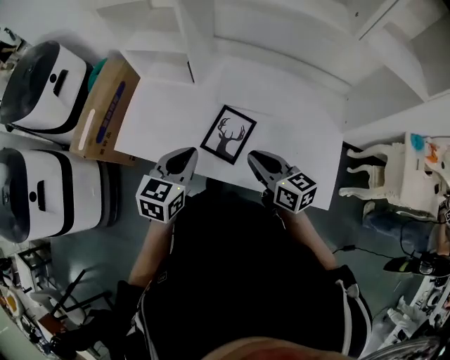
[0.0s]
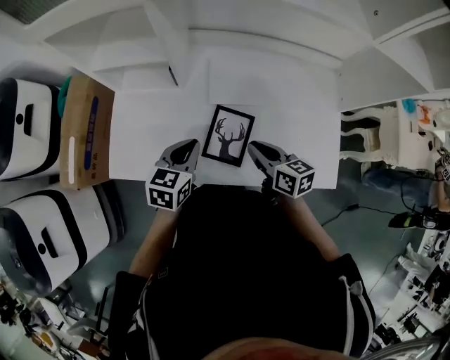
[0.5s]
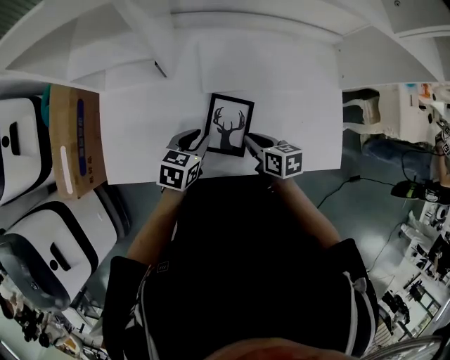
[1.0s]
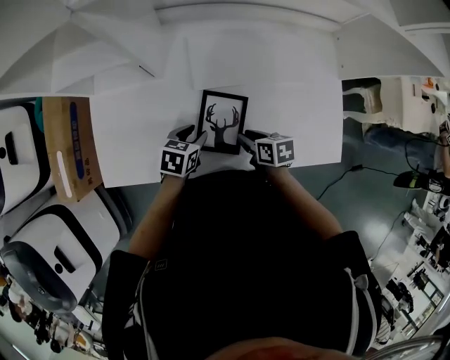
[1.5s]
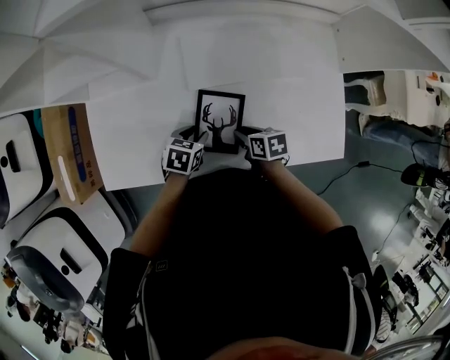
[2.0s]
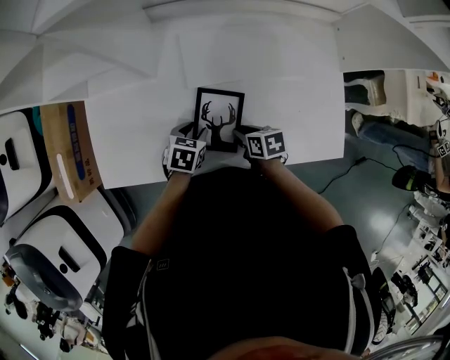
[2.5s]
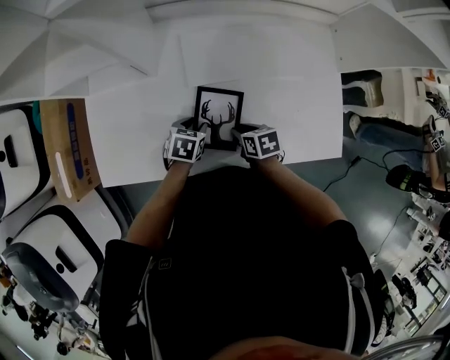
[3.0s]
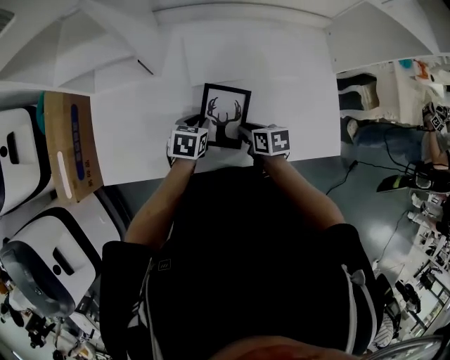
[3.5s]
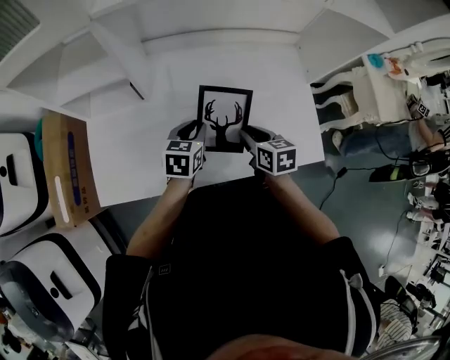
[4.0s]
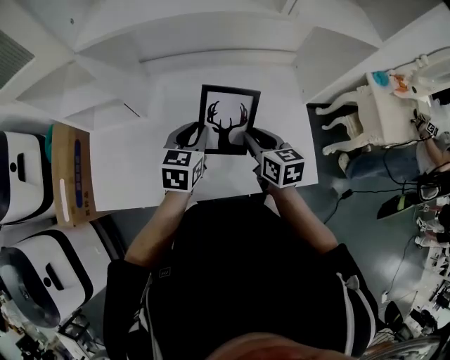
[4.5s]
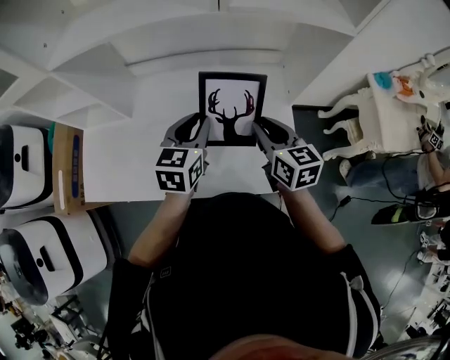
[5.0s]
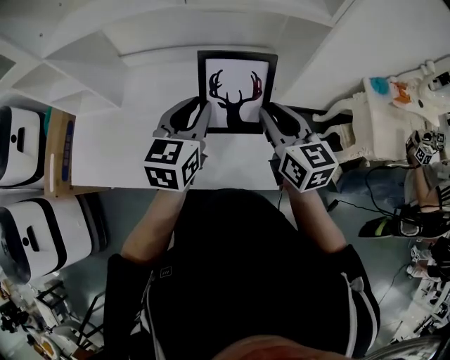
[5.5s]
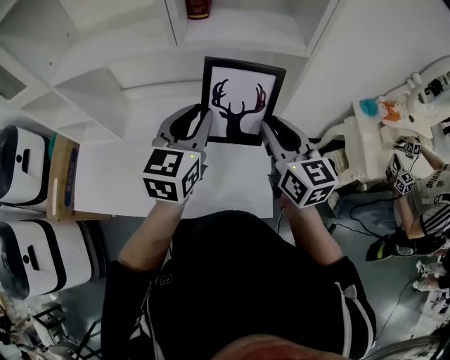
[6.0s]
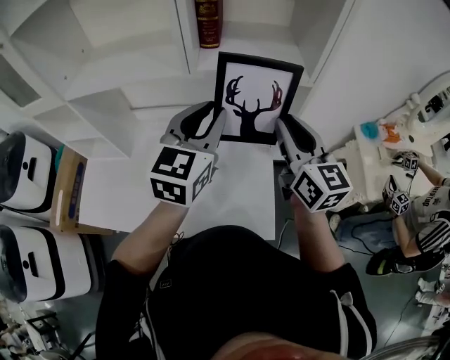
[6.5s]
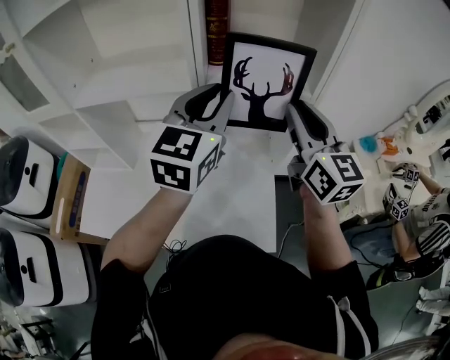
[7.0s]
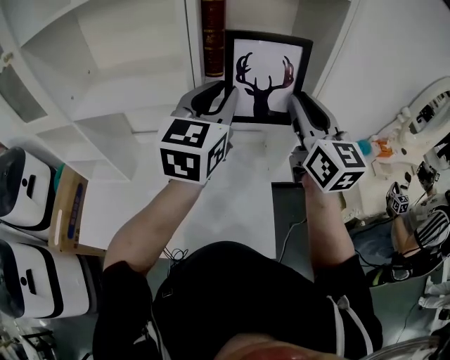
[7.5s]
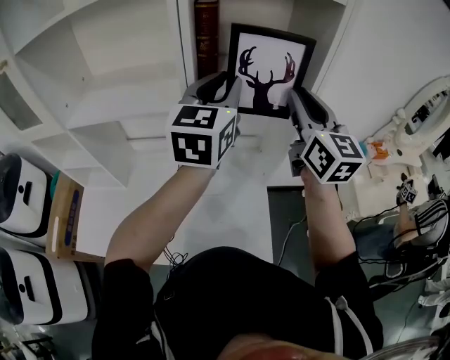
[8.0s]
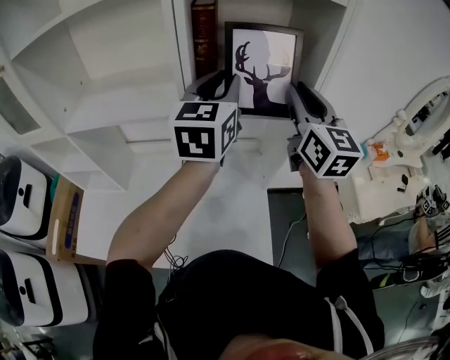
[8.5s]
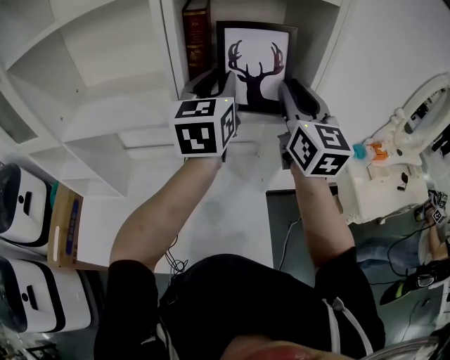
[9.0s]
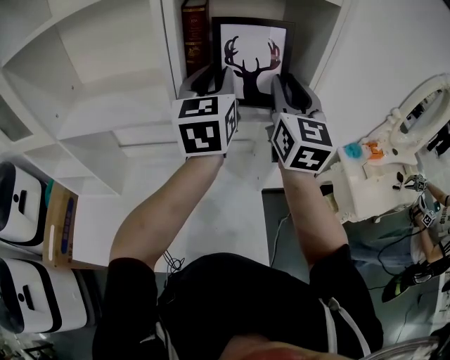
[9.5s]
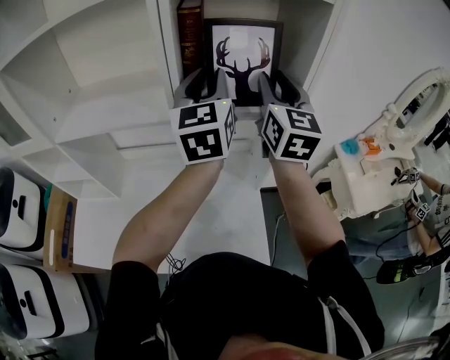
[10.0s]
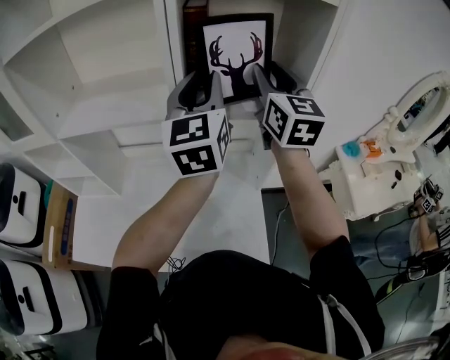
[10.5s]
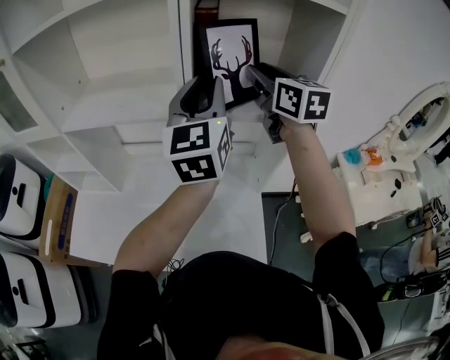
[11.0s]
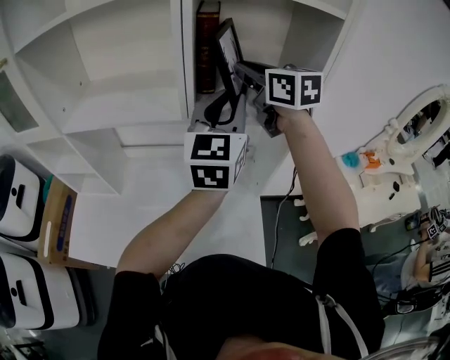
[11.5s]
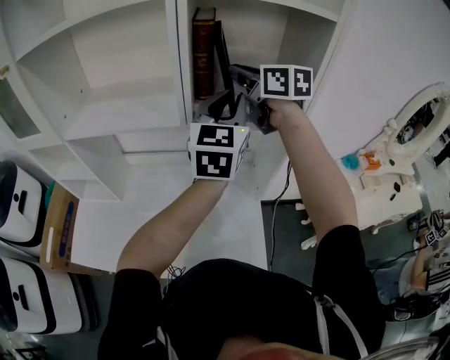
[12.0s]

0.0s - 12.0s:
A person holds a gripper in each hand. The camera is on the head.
0.0s - 2.0s: The left gripper heads downward and forward, covering approximately 30 cm, rotates about 40 degrees, and opens up, while the right gripper goes approximately 25 cm downward, and tilts its fingers about 40 degrees downward.
2.0s - 4.0s: Both grippers travel together upward, approximately 15 cm. The left gripper changes its angle by roughly 20 degrees. Meanwhile the right gripper turns by roughly 30 degrees.
4.0s - 6.0s: The two grippers go roughly 40 cm to the right and upward. The left gripper changes its angle by approximately 30 degrees. Meanwhile the right gripper tips its fingers upward by roughly 40 degrees.
6.0s - 8.0s: The grippers both shift upward and forward by approximately 20 cm. The right gripper rotates approximately 20 degrees.
8.0s - 10.0s: The right gripper moves forward, approximately 5 cm.
10.0s - 12.0s: The right gripper is displaced to the left and forward by some 10 cm, and rotates some 40 degrees.

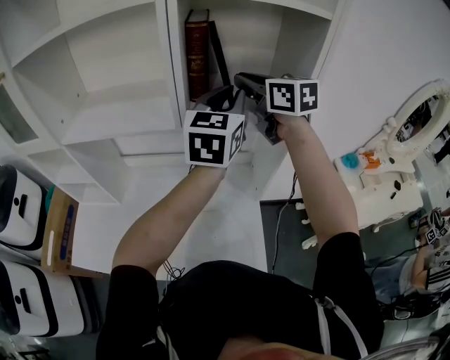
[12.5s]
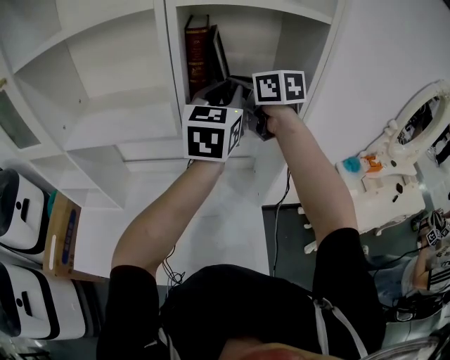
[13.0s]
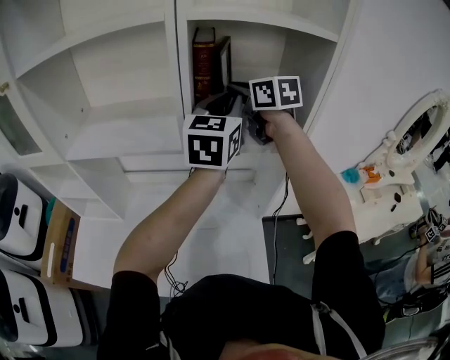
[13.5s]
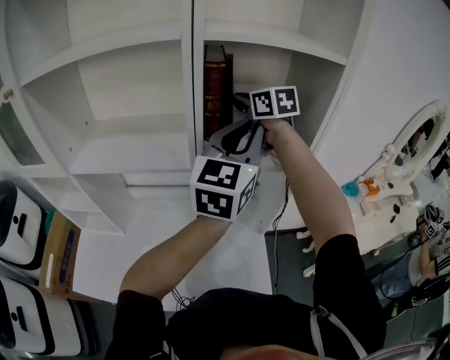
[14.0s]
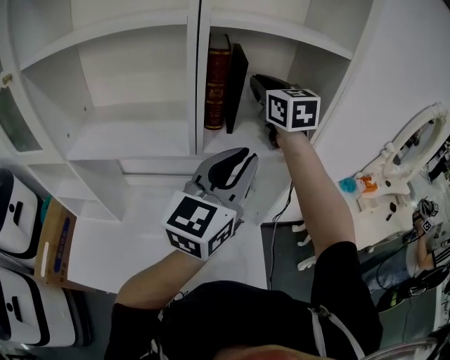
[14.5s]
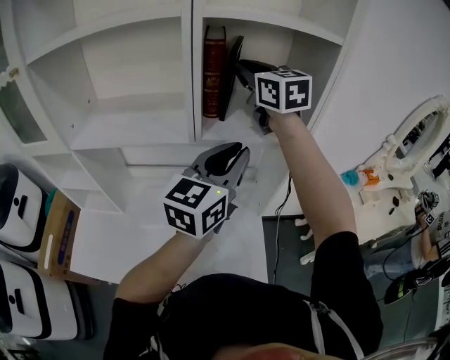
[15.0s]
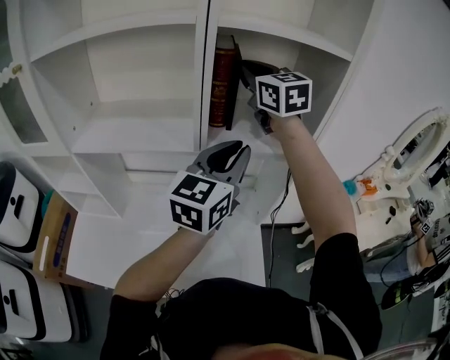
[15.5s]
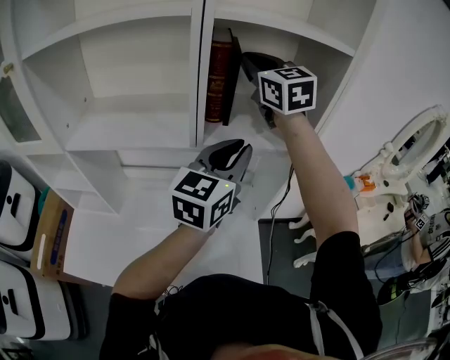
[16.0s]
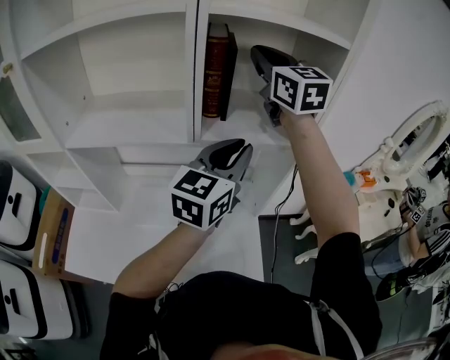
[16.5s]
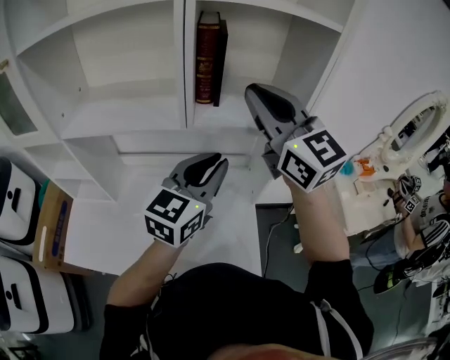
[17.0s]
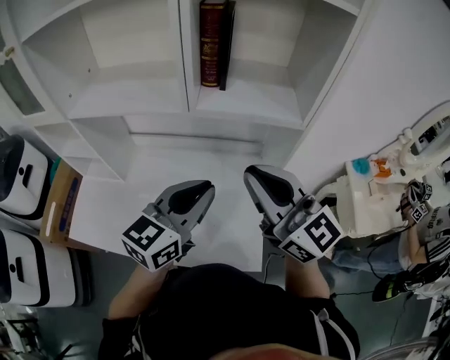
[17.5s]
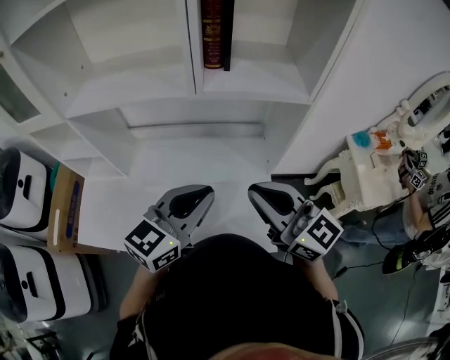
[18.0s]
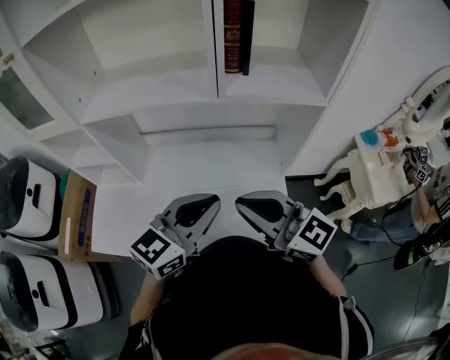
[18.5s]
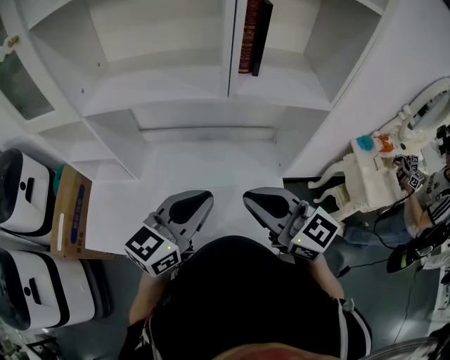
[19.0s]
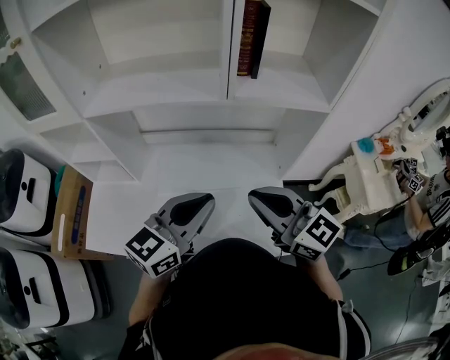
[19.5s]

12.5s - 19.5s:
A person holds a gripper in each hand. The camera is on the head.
12.5s - 14.5s: The left gripper heads backward, covering some 10 cm. Meanwhile the right gripper goes roughly 5 cm upward and forward, and rotates some 20 degrees.
14.5s - 16.0s: The left gripper moves about 5 cm; the right gripper changes place by roughly 5 cm.
16.0s - 17.5s: The left gripper moves backward and downward, some 15 cm. Meanwhile the right gripper moves backward and downward, some 35 cm, and rotates roughly 30 degrees.
17.5s - 19.5s: The right gripper heads to the left and downward, covering some 15 cm. The left gripper is displaced to the left by approximately 10 cm.

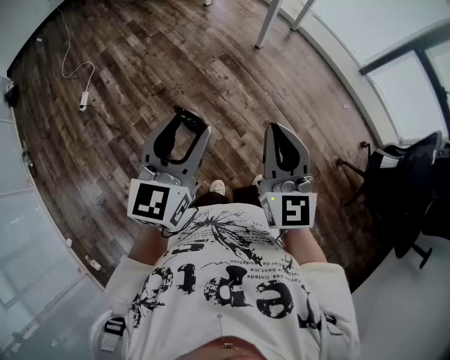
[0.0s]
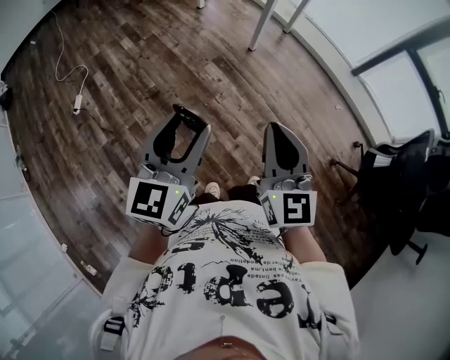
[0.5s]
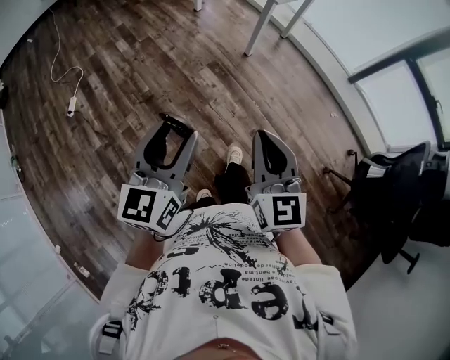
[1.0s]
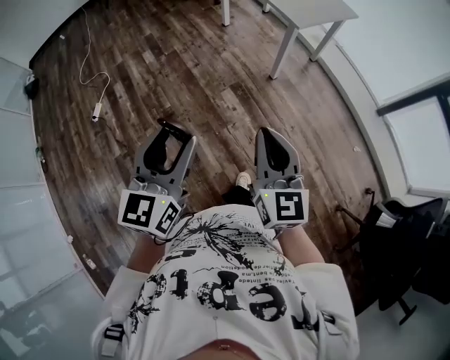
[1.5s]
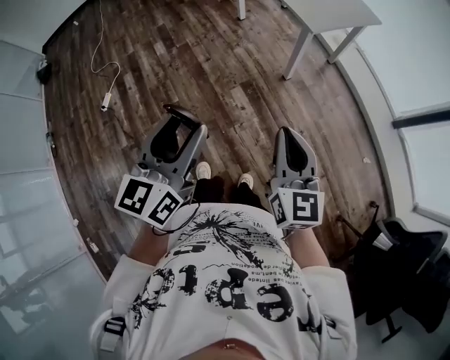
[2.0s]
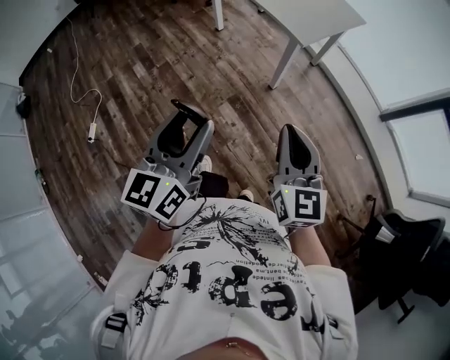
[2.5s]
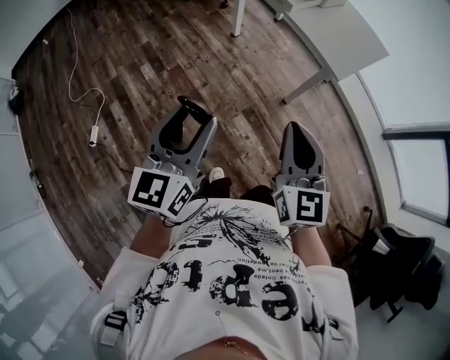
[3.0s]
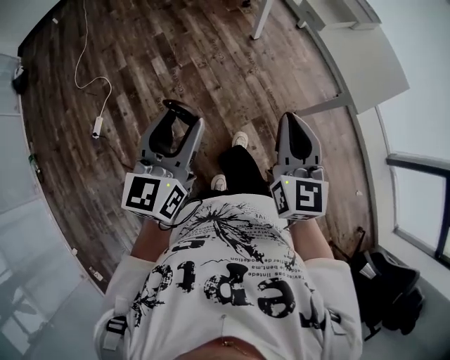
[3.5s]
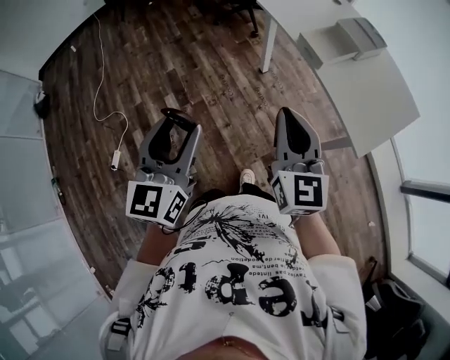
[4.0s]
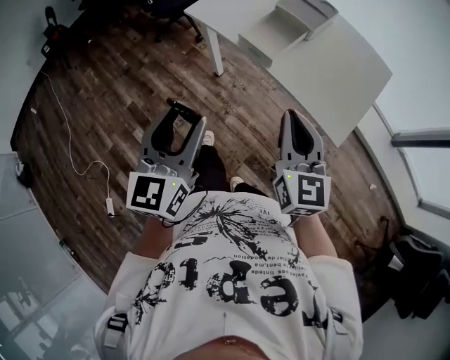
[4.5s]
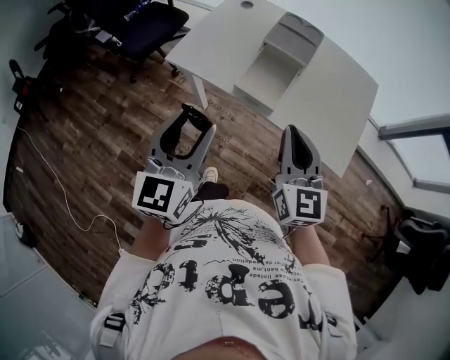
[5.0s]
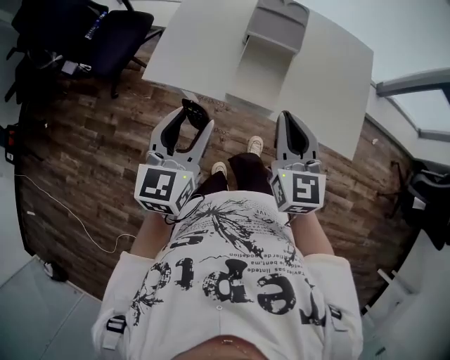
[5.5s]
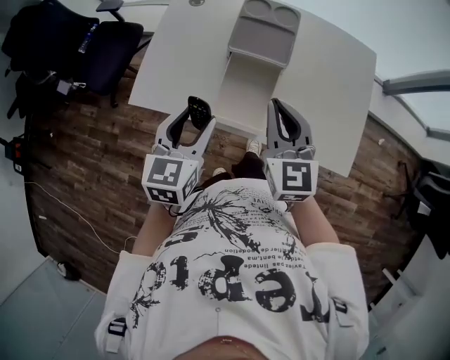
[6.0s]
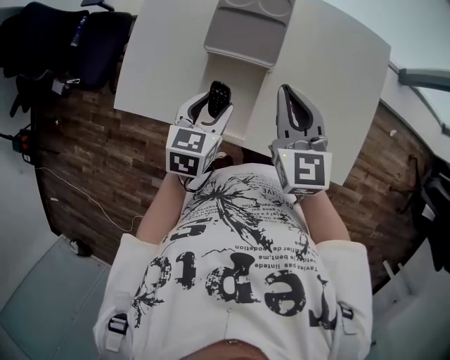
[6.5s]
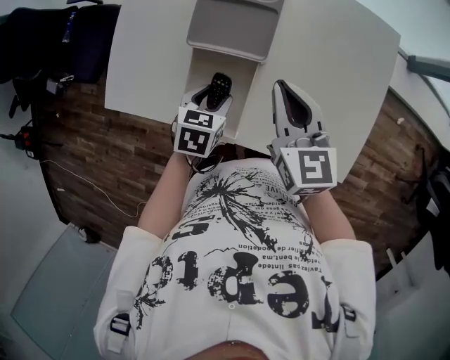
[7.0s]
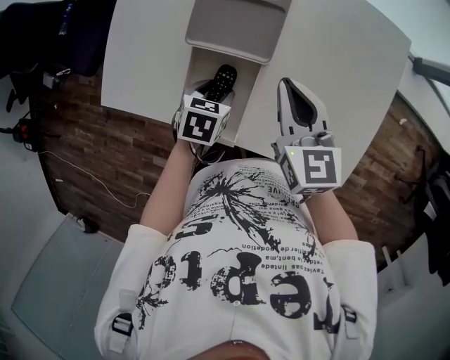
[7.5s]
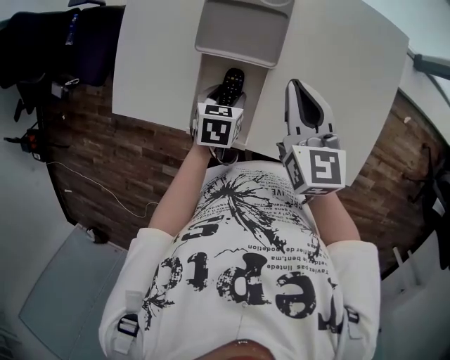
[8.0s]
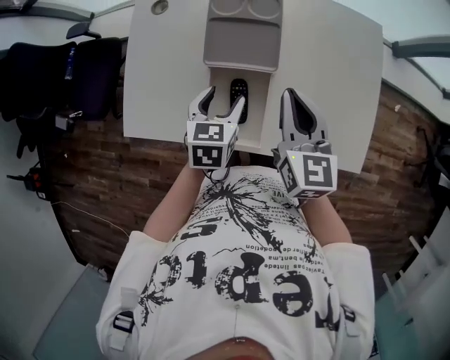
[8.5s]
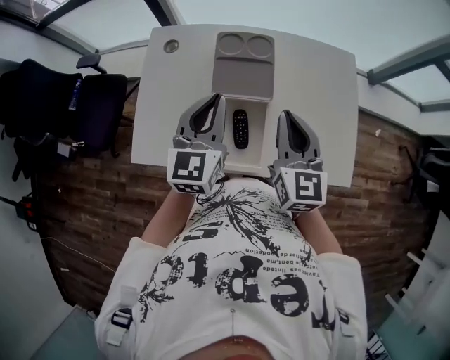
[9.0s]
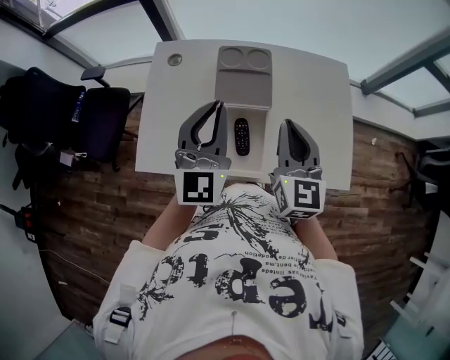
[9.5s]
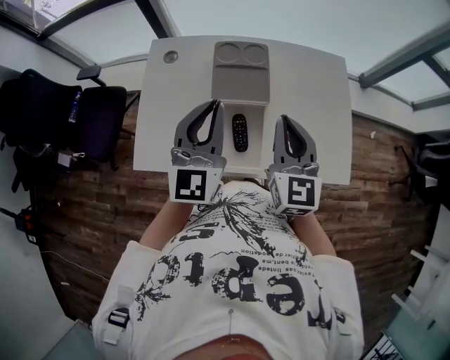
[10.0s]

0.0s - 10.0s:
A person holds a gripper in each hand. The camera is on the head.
0.0s - 2.0s: The right gripper travels forward and to the right by roughly 35 cm. The left gripper is displaced forward by about 30 cm.
2.0s - 4.0s: The pair of grippers is taken forward and to the left, approximately 60 cm.
4.0s - 6.0s: Both grippers are carried approximately 50 cm. The right gripper turns by some 40 degrees; the left gripper swivels some 50 degrees.
6.0s - 8.0s: The right gripper moves forward, to the right and downward, approximately 20 cm, and rotates some 20 degrees; the left gripper shifts approximately 25 cm downward, forward and to the right, and tips its fingers downward by approximately 40 degrees.
8.0s - 10.0s: The left gripper moves upward, some 35 cm, tips its fingers upward by approximately 70 degrees, and closes up. Meanwhile the right gripper goes approximately 15 cm upward and backward, and rotates roughly 30 degrees.
